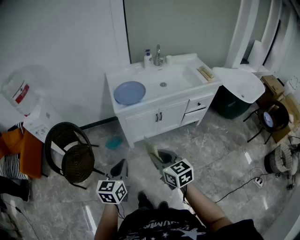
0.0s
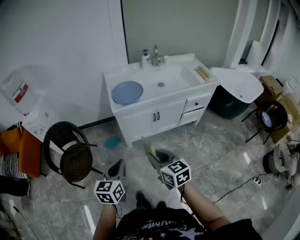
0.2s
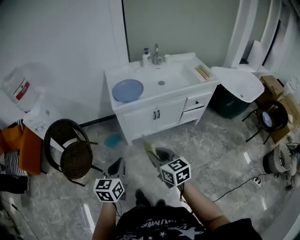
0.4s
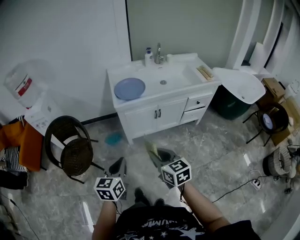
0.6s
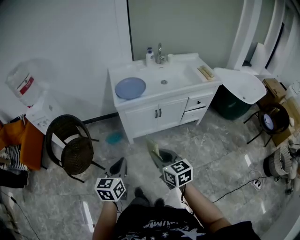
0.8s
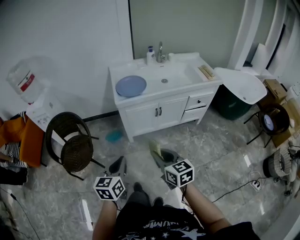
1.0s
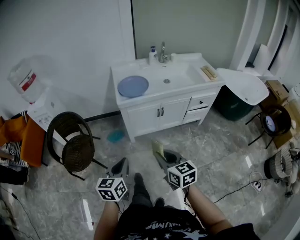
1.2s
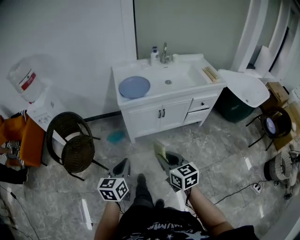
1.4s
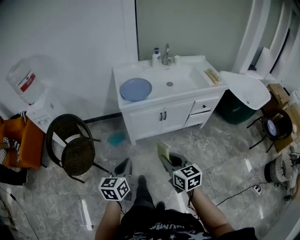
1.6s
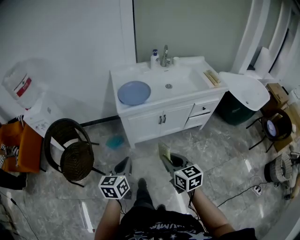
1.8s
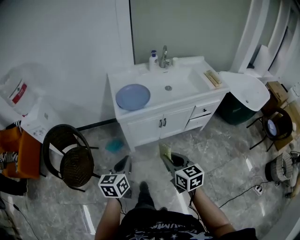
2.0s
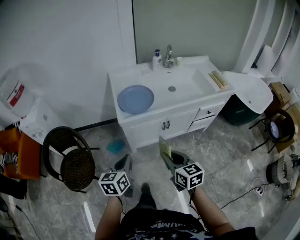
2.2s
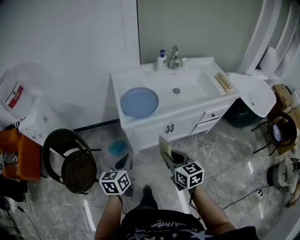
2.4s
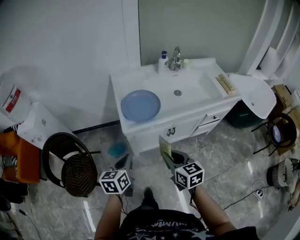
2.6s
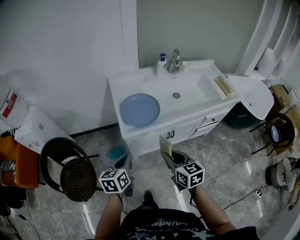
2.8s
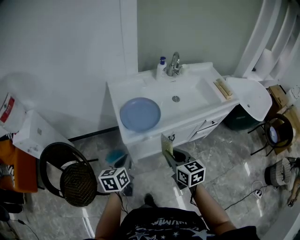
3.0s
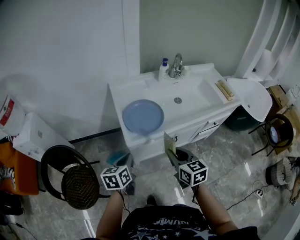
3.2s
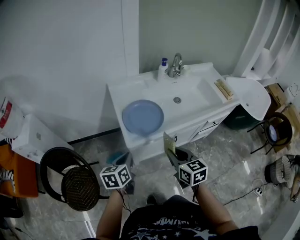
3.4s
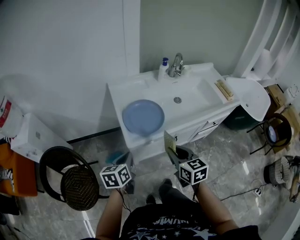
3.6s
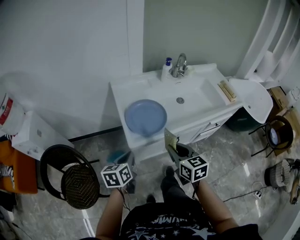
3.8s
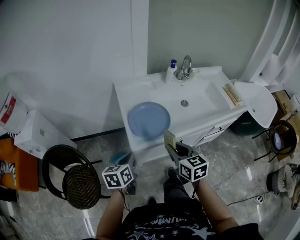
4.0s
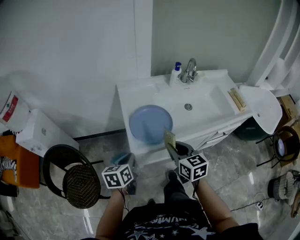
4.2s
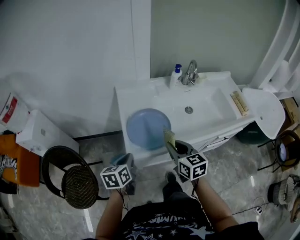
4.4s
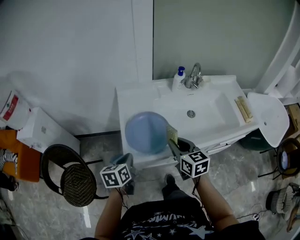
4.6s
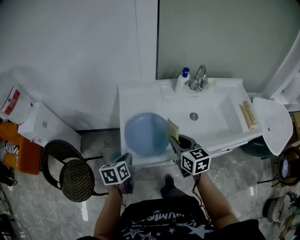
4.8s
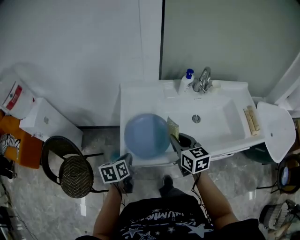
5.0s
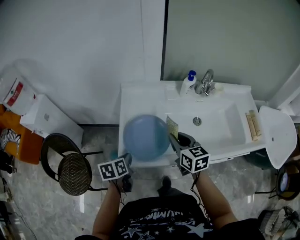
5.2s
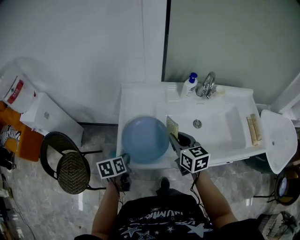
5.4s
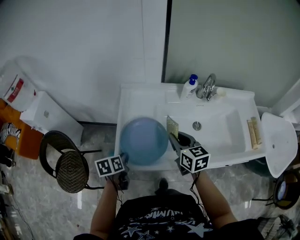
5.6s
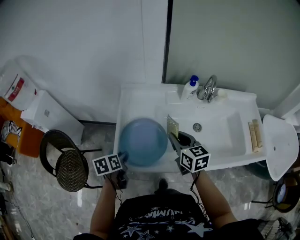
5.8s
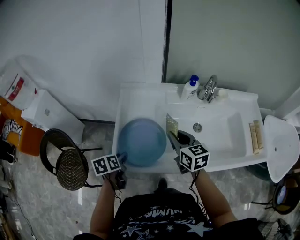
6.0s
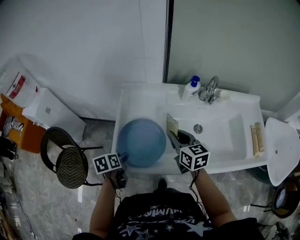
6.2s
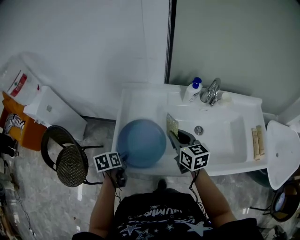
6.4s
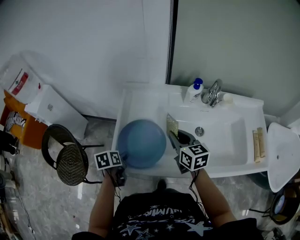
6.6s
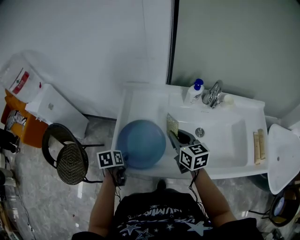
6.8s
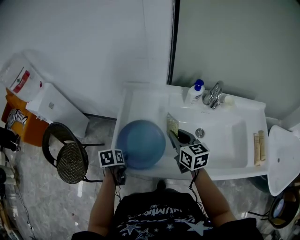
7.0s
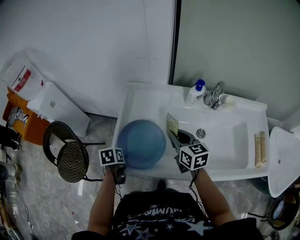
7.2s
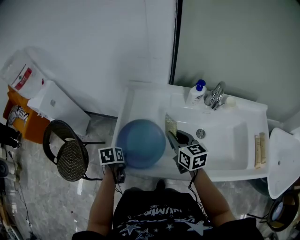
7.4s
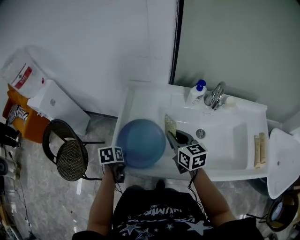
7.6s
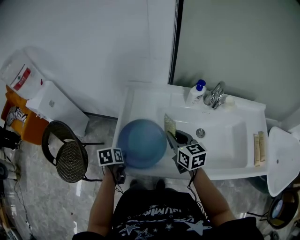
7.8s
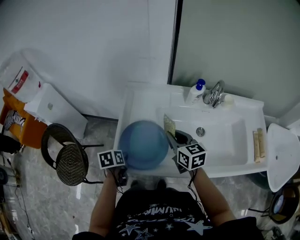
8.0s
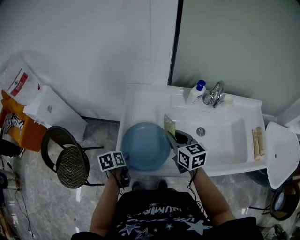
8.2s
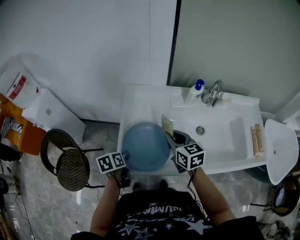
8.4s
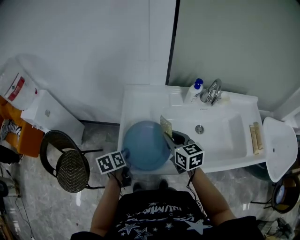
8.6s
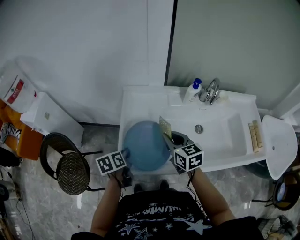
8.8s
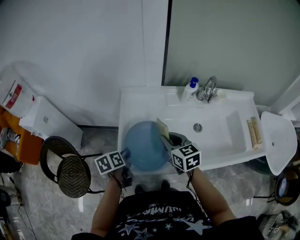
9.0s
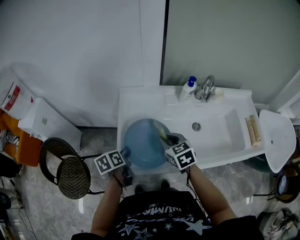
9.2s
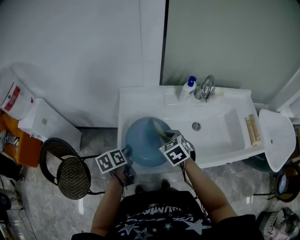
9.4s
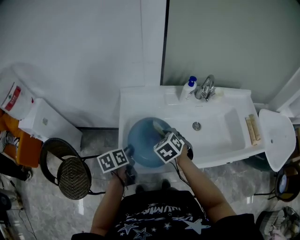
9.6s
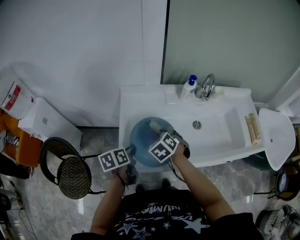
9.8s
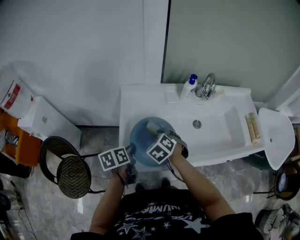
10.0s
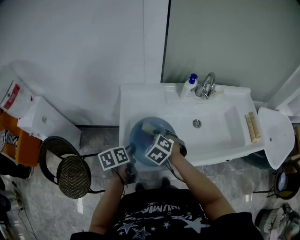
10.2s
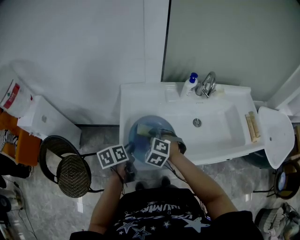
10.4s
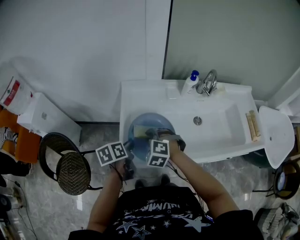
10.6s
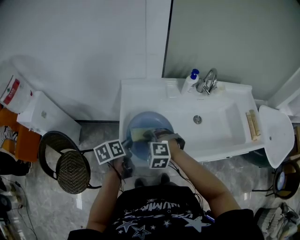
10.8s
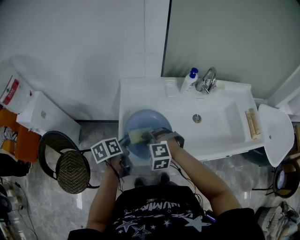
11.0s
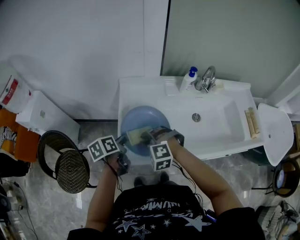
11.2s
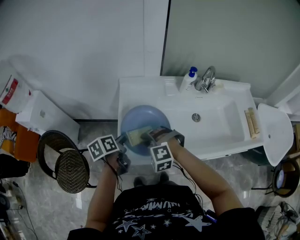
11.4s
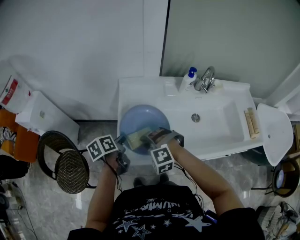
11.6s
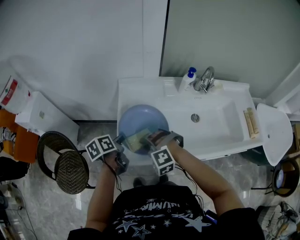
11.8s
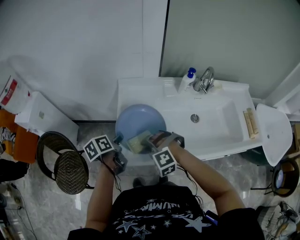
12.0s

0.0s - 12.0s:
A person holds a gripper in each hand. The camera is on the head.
0.0s - 1.6s: The right gripper changes place by about 5 cm.
1.6s - 3.0s: The grippers both shift forward by about 30 cm.
3.0s - 4.4s: The two grippers go approximately 15 cm forward.
4.4s - 6.0s: The right gripper travels forward and to the right by approximately 20 cm. The left gripper moves forward and downward, some 10 cm, turns by roughly 30 degrees, and opens.
6.0s - 7.6s: The grippers move only a little.
7.6s - 9.0s: The right gripper heads to the left, covering some 5 cm. The left gripper shifts roughly 5 cm upward, and swivels approximately 20 degrees.
9.0s - 10.4s: The right gripper goes about 10 cm to the left and downward, and rotates around the line of its fingers by about 50 degrees, counterclockwise from behind.
10.4s - 12.0s: The right gripper moves backward, approximately 10 cm, and twists approximately 40 degrees counterclockwise, seen from behind.

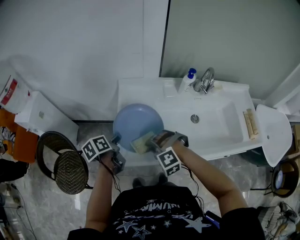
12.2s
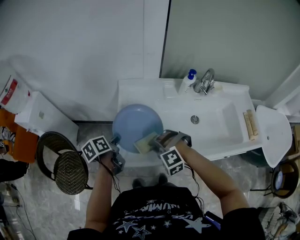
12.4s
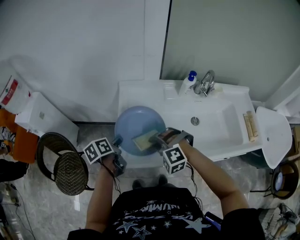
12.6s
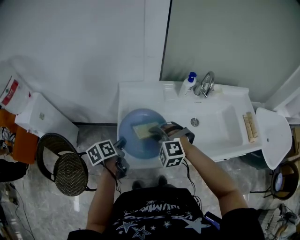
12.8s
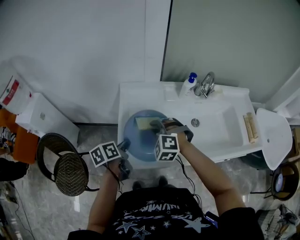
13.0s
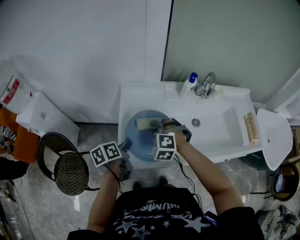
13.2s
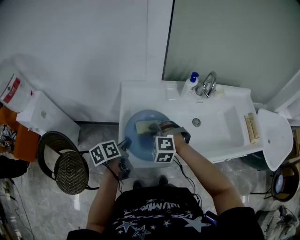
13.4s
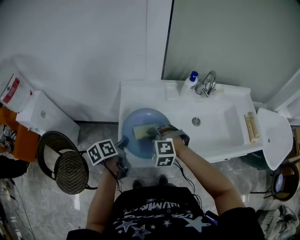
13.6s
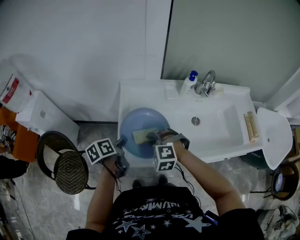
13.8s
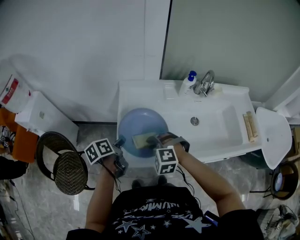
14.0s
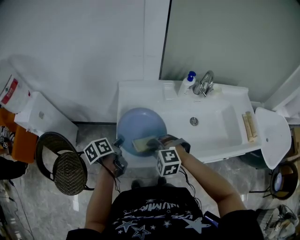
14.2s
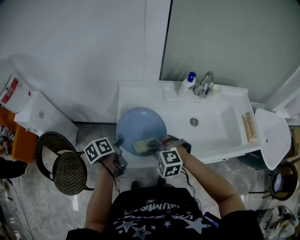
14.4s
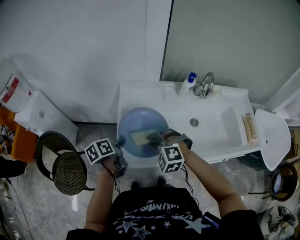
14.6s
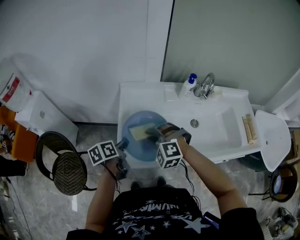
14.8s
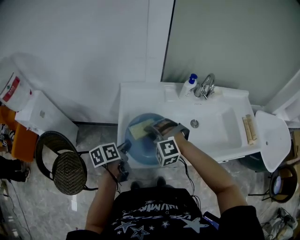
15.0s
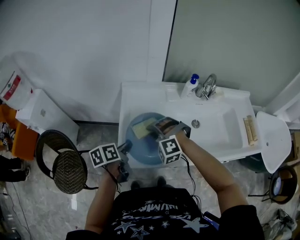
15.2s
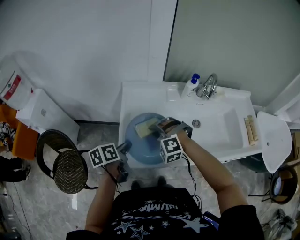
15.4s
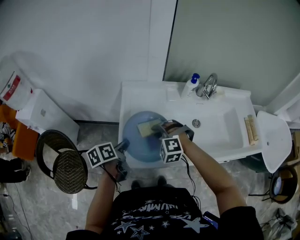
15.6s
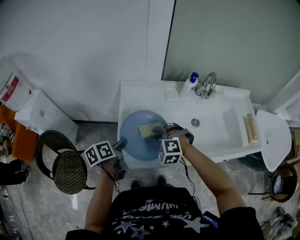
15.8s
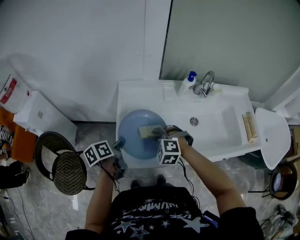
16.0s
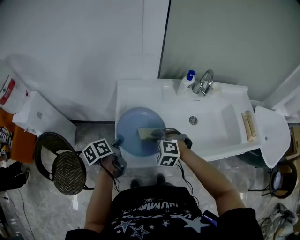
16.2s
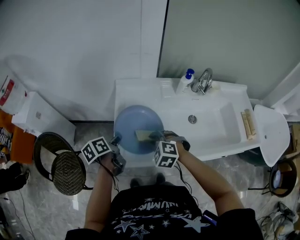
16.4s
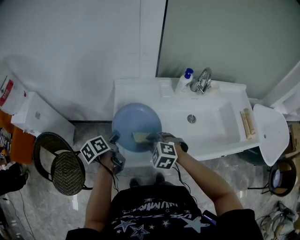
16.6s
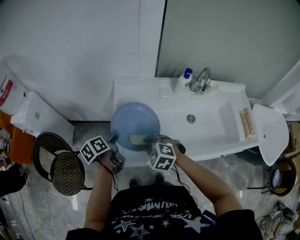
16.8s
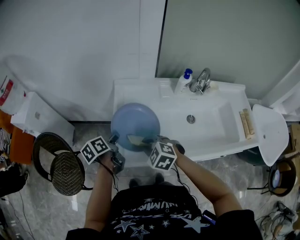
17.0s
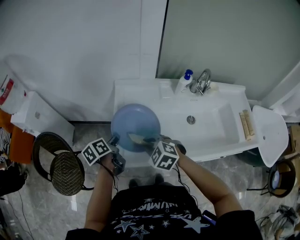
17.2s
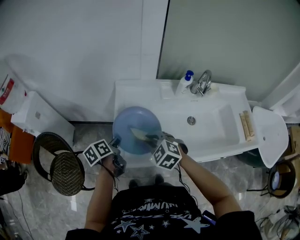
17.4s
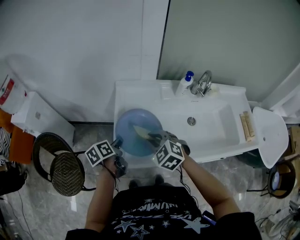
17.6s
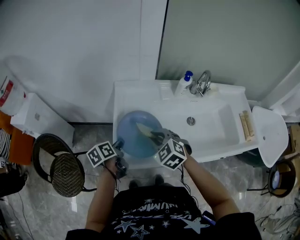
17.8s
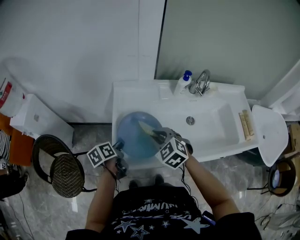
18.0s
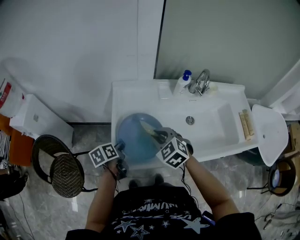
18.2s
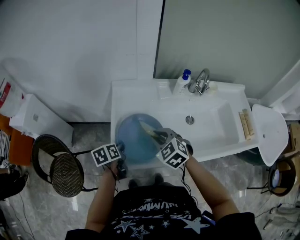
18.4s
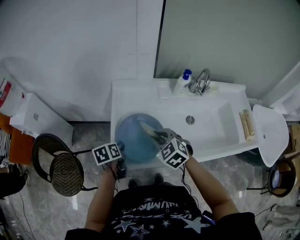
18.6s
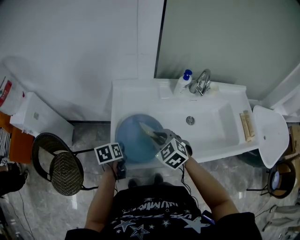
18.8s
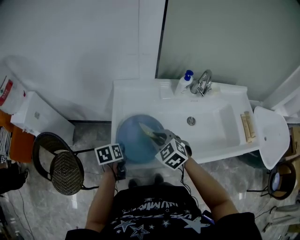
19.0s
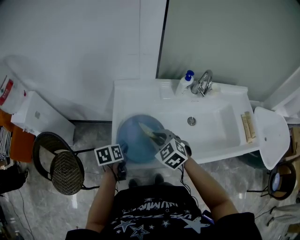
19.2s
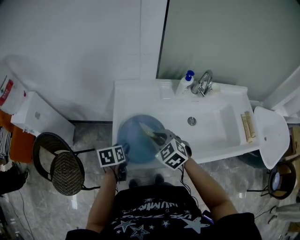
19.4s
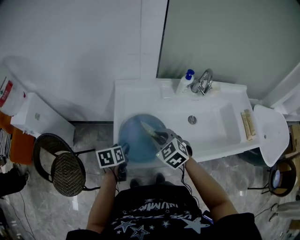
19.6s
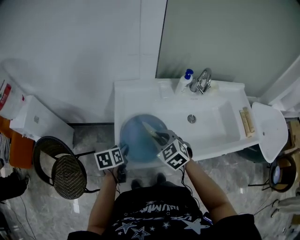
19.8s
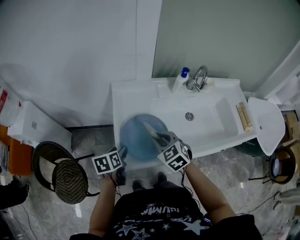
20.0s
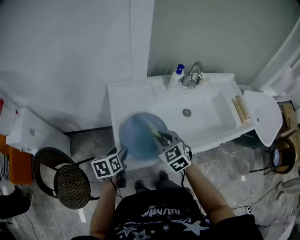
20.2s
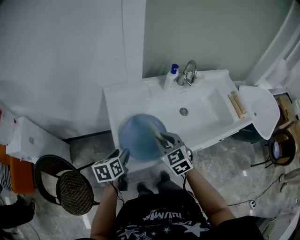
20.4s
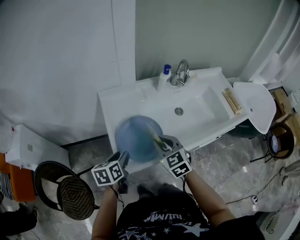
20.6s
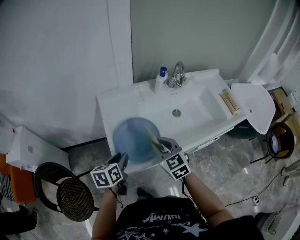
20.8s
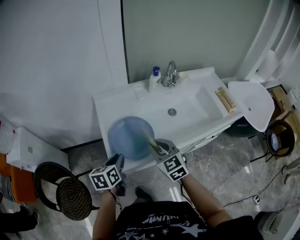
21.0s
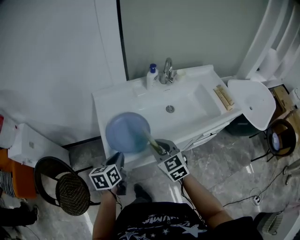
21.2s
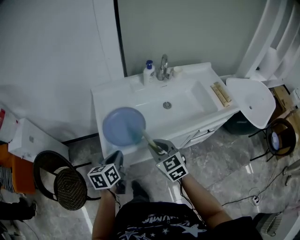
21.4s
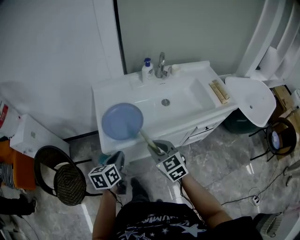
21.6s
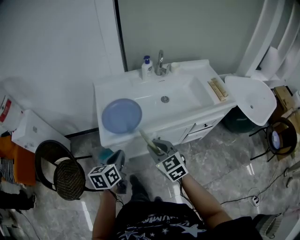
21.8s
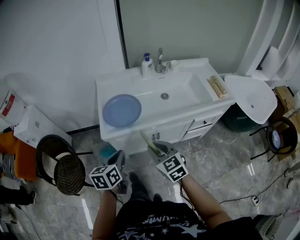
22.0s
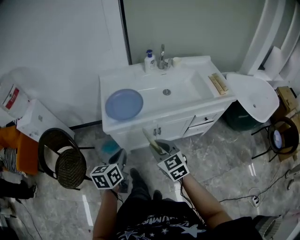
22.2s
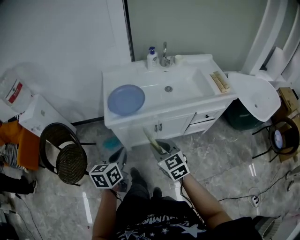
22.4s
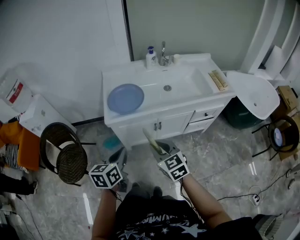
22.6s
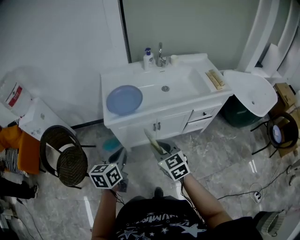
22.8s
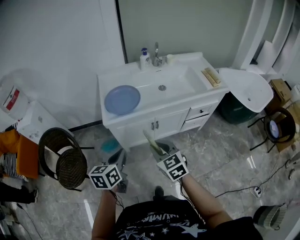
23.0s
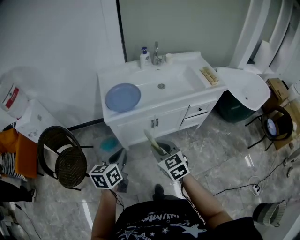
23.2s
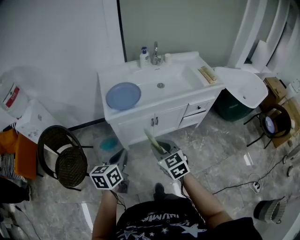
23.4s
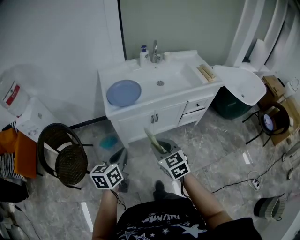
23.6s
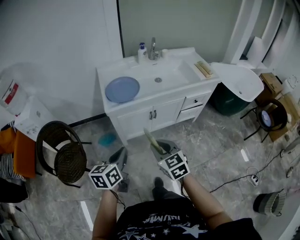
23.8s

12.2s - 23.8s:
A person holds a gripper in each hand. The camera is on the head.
12.2s - 13.6s: The right gripper heads forward, covering some 5 cm, and turns by approximately 20 degrees.
13.6s - 15.0s: There are only small adjustments of the grippers.
15.0s - 16.6s: The right gripper heads downward, covering approximately 5 cm, and turns by approximately 40 degrees. Meanwhile the left gripper changes place by roughly 5 cm.
16.6s - 18.0s: The right gripper heads upward, covering roughly 5 cm, and swivels roughly 20 degrees.
18.0s - 19.4s: The left gripper turns by about 30 degrees, and opens.
19.4s - 21.0s: The left gripper travels upward and backward by roughly 10 cm, swivels about 20 degrees, and closes up. Meanwhile the right gripper heads backward, covering roughly 10 cm, and changes its angle by some 30 degrees.
21.0s - 22.4s: Both grippers move backward, about 25 cm.
22.4s - 23.8s: Both grippers travel together backward, approximately 10 cm.
